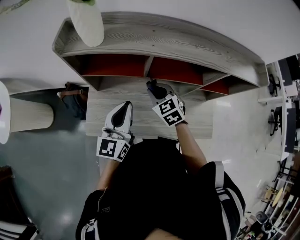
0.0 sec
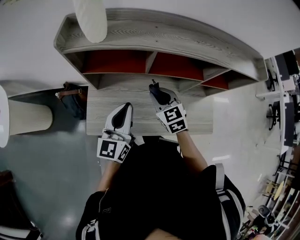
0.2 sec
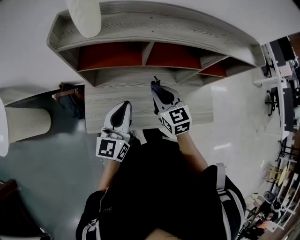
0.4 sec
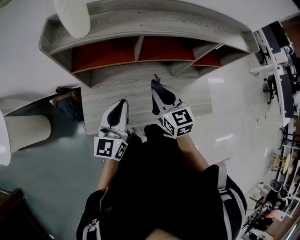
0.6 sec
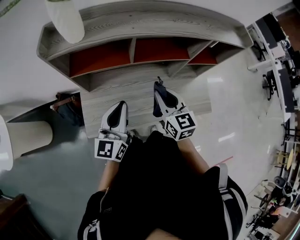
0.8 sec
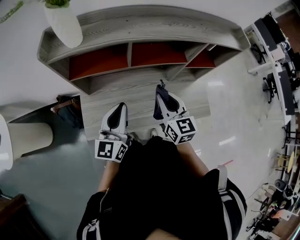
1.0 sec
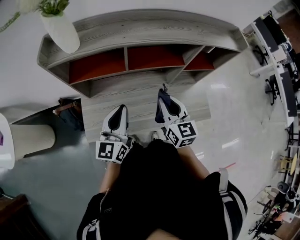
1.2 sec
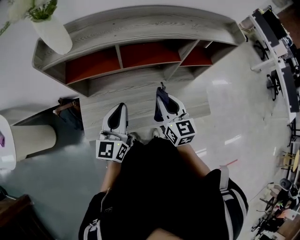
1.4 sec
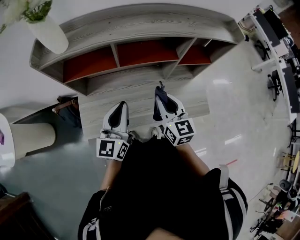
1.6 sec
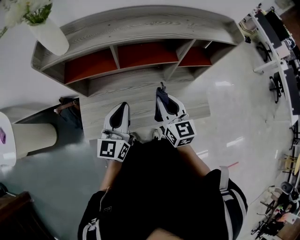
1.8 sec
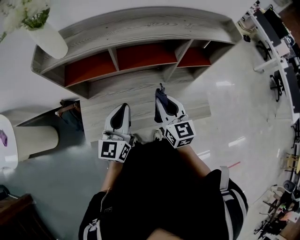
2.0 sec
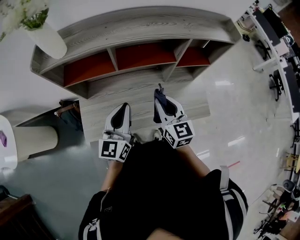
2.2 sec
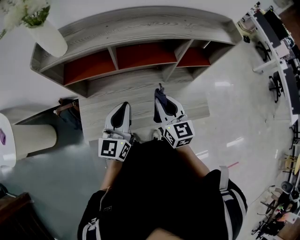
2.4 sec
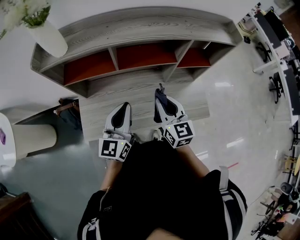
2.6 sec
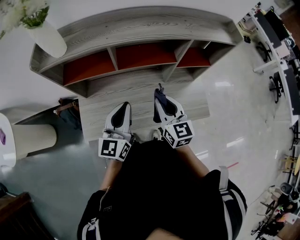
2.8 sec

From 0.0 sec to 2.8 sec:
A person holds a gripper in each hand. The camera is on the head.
From 0.0 sec to 1.4 sec: The right gripper is displaced backward, to the right and upward by roughly 20 cm, and turns by some 40 degrees, while the left gripper shifts about 5 cm backward.
From 1.4 sec to 2.8 sec: The grippers move only a little.

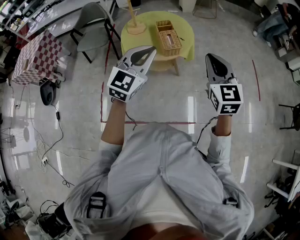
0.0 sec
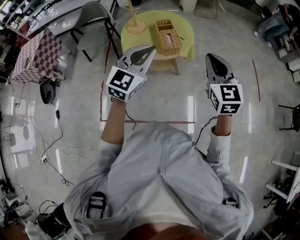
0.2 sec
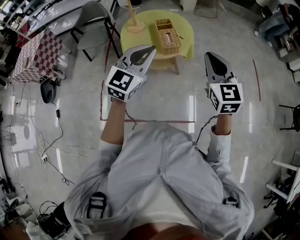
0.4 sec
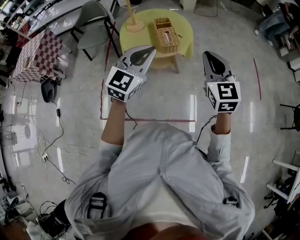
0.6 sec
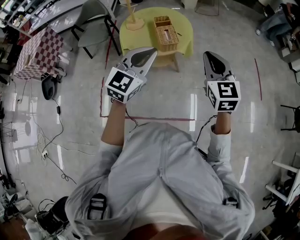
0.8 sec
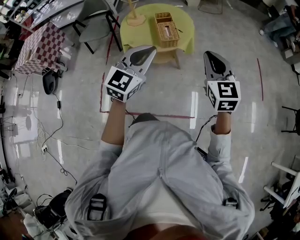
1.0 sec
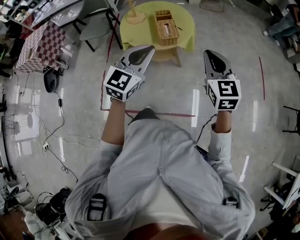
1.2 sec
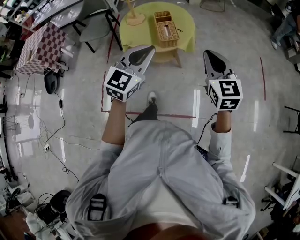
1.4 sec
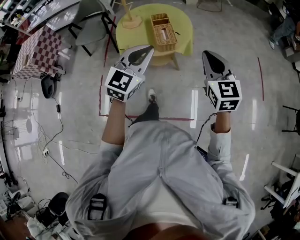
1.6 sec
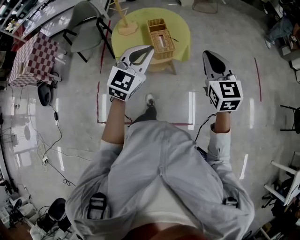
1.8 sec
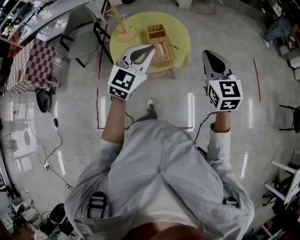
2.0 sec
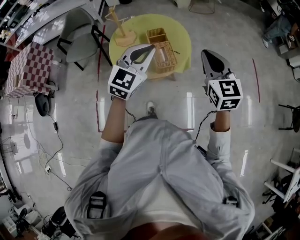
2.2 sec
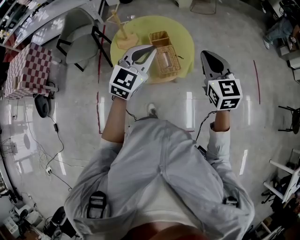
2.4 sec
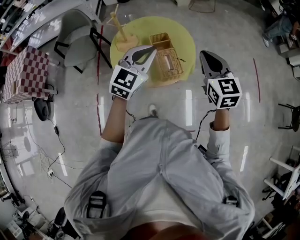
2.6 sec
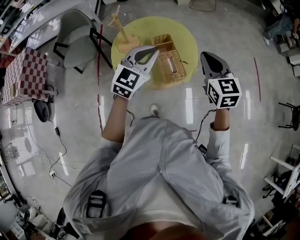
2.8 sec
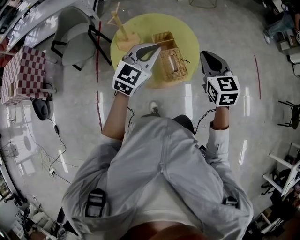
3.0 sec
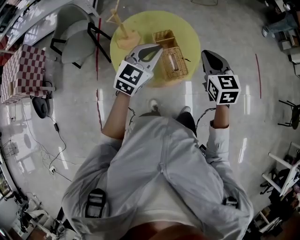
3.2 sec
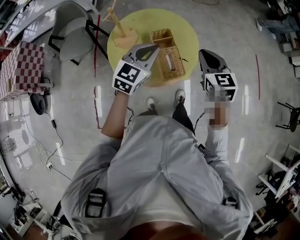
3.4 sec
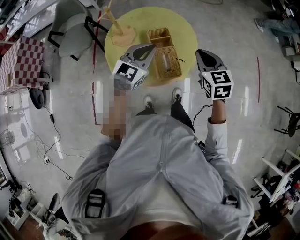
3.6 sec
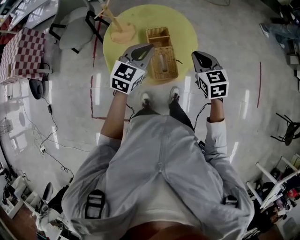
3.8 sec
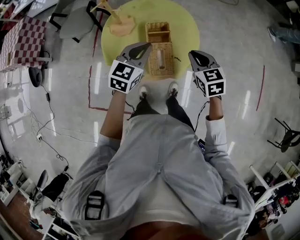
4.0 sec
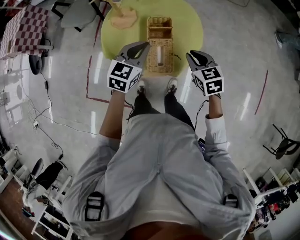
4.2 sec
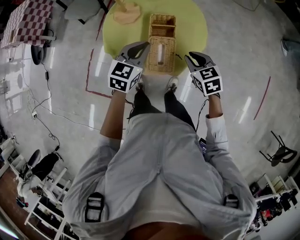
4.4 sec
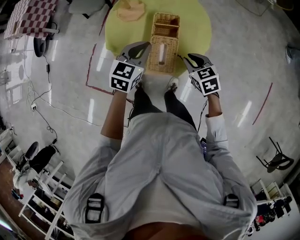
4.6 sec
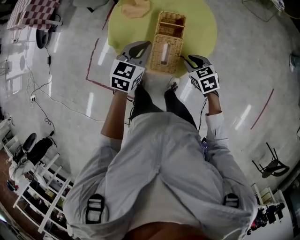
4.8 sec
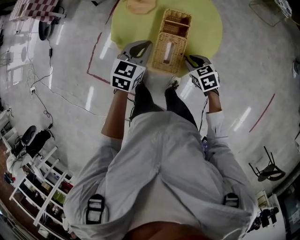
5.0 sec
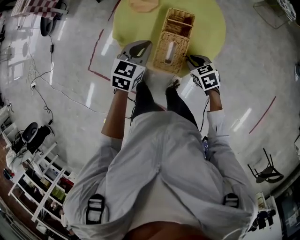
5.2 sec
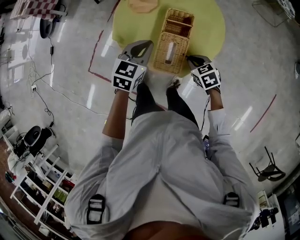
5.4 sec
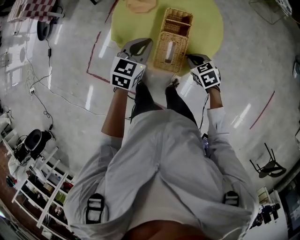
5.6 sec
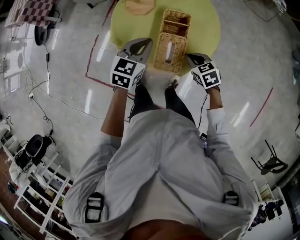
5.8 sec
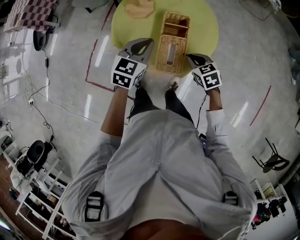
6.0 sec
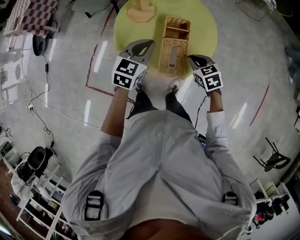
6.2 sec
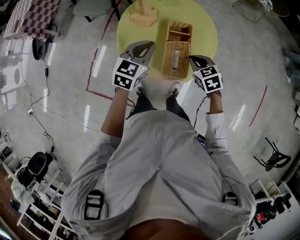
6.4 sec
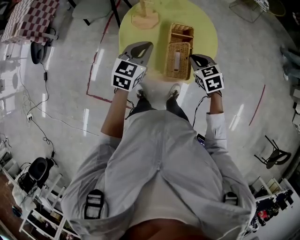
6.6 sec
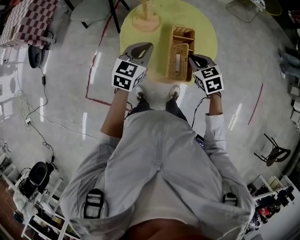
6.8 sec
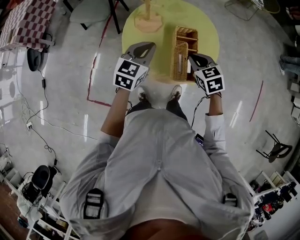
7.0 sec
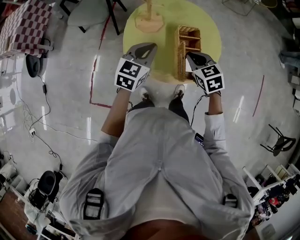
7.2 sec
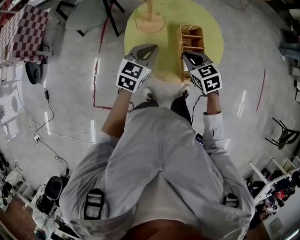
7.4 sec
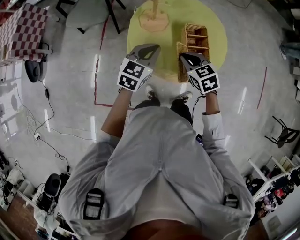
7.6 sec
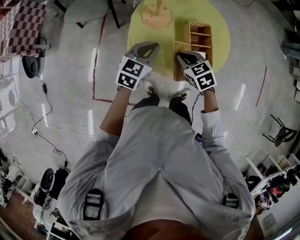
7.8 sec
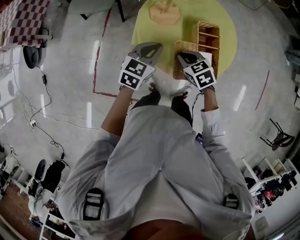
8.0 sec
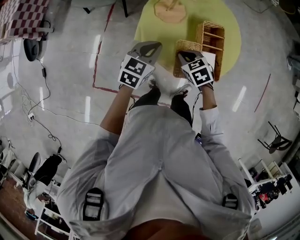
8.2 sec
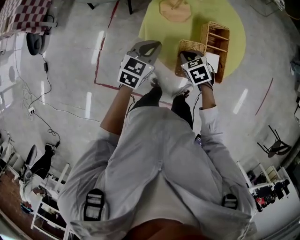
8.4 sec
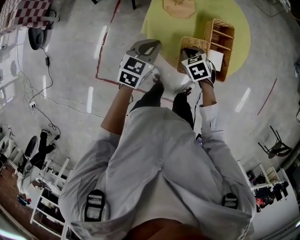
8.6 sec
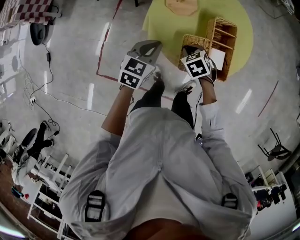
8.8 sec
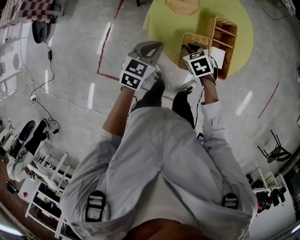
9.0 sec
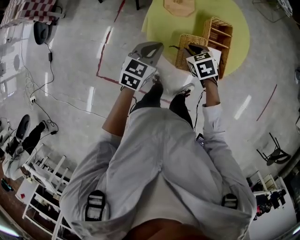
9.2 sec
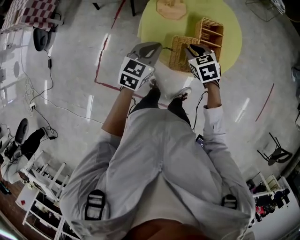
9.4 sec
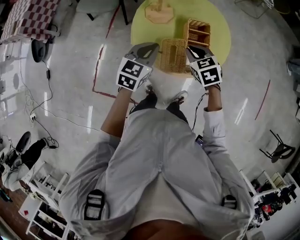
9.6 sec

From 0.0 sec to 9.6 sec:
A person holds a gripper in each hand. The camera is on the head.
From 0.0 sec to 1.6 sec: The right gripper moves forward, roughly 5 cm. Meanwhile the left gripper is displaced to the right by some 5 cm.
From 1.6 sec to 3.2 sec: The right gripper is displaced forward and to the left by approximately 30 cm. The left gripper moves forward, approximately 30 cm.
From 3.2 sec to 4.8 sec: The left gripper is displaced downward by approximately 15 cm, and turns by some 40 degrees. Meanwhile the right gripper moves downward, about 25 cm, swivels approximately 50 degrees, and opens its fingers.
From 4.8 sec to 6.4 sec: The left gripper is displaced to the left by about 5 cm. Meanwhile the right gripper goes about 10 cm upward and to the left.
From 6.4 sec to 8.0 sec: The right gripper goes roughly 20 cm to the left; the left gripper moves to the left and downward, about 15 cm.
From 8.0 sec to 9.6 sec: The left gripper shifts some 5 cm backward, while the right gripper is displaced to the right and upward by approximately 10 cm.

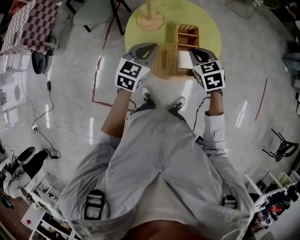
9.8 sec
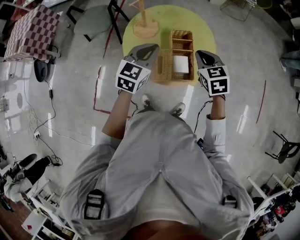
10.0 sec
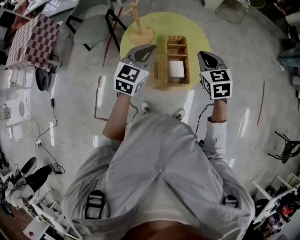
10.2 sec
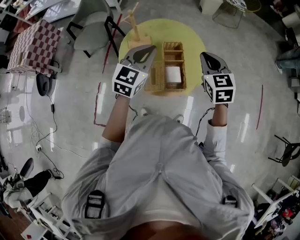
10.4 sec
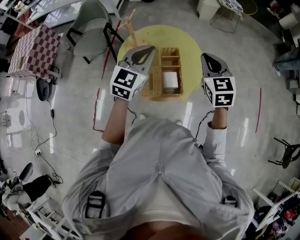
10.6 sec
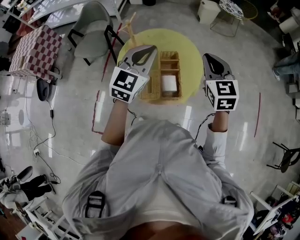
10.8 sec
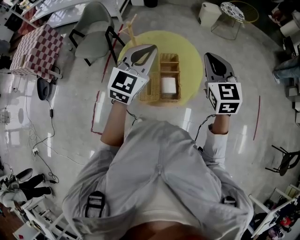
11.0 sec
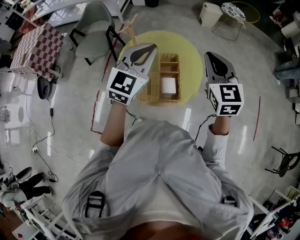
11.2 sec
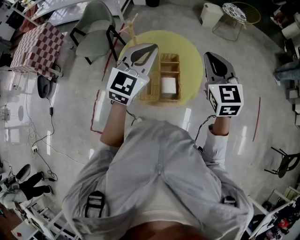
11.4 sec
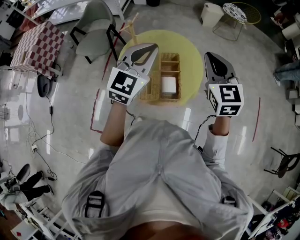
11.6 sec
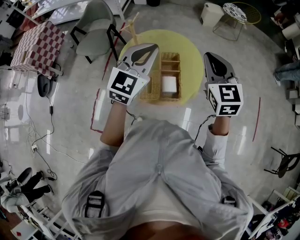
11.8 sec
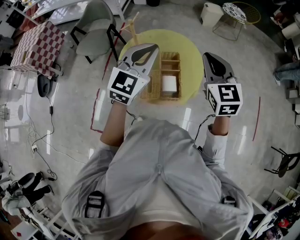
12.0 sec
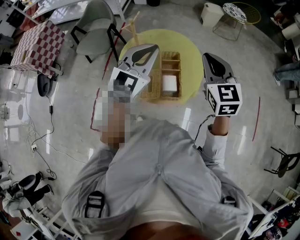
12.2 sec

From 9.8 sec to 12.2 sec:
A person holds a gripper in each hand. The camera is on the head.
From 9.8 sec to 11.0 sec: The two grippers go some 25 cm upward and to the right. The right gripper turns by about 30 degrees; the left gripper changes its angle by about 20 degrees.
From 11.0 sec to 12.2 sec: There are only small adjustments of the grippers.

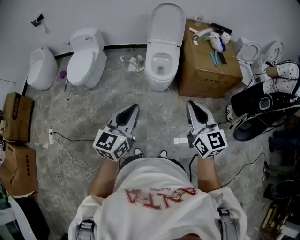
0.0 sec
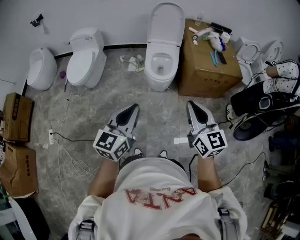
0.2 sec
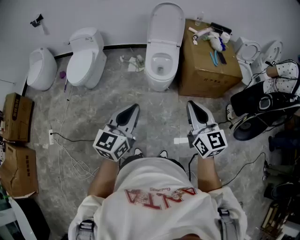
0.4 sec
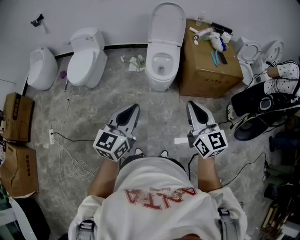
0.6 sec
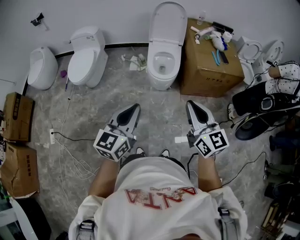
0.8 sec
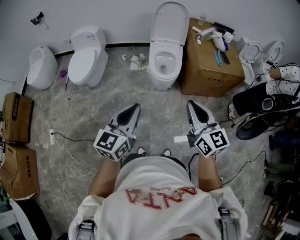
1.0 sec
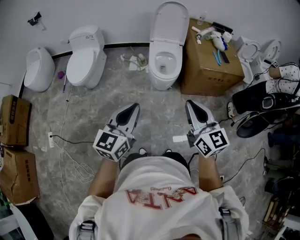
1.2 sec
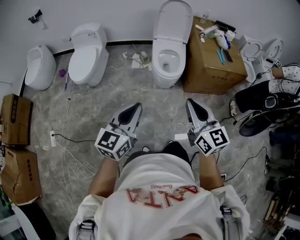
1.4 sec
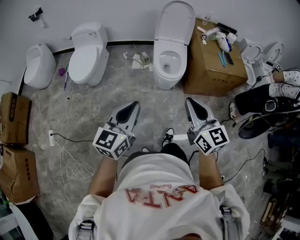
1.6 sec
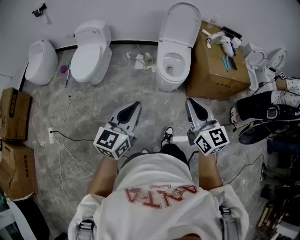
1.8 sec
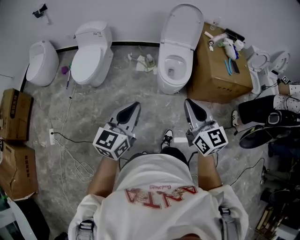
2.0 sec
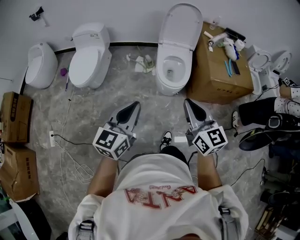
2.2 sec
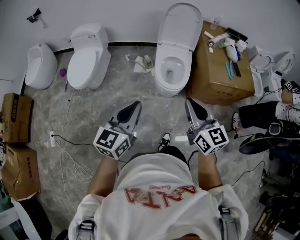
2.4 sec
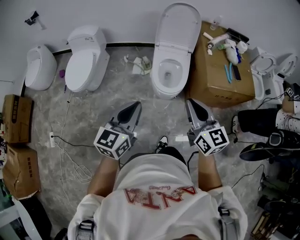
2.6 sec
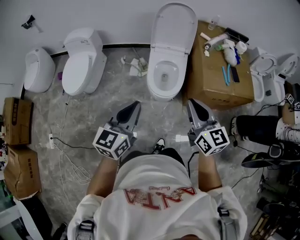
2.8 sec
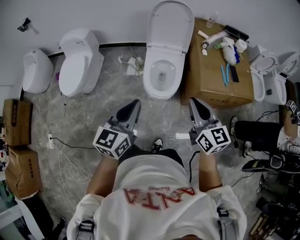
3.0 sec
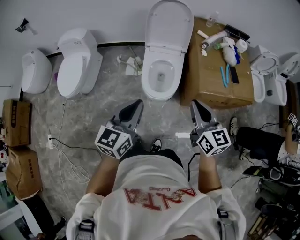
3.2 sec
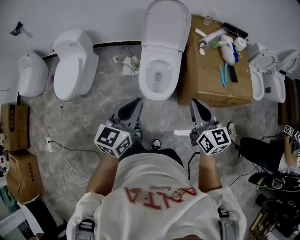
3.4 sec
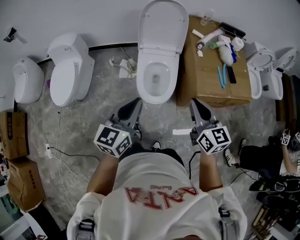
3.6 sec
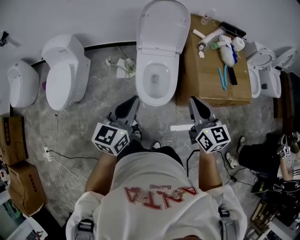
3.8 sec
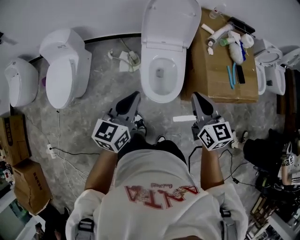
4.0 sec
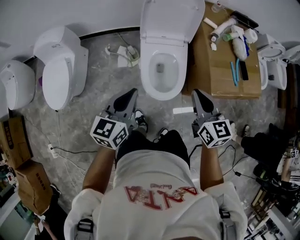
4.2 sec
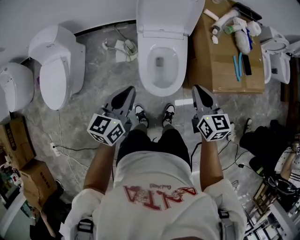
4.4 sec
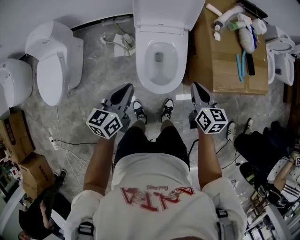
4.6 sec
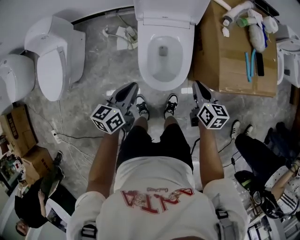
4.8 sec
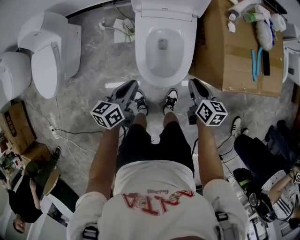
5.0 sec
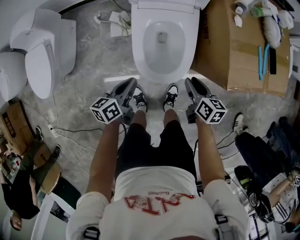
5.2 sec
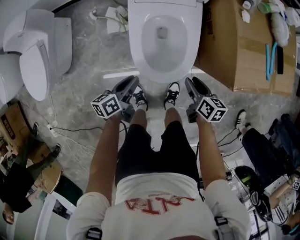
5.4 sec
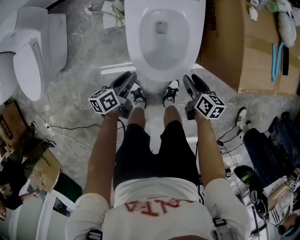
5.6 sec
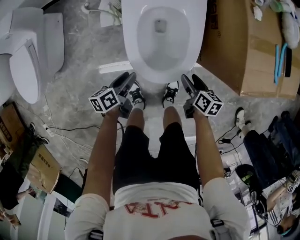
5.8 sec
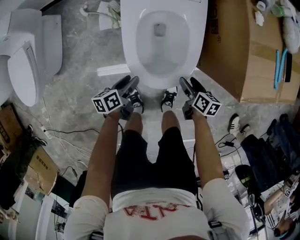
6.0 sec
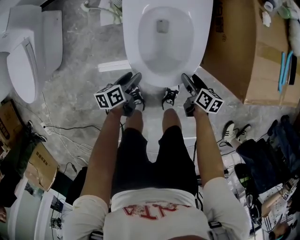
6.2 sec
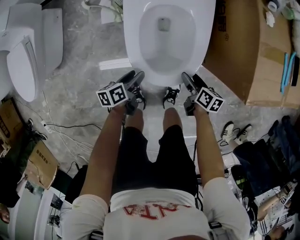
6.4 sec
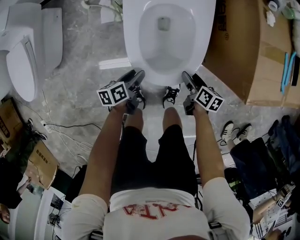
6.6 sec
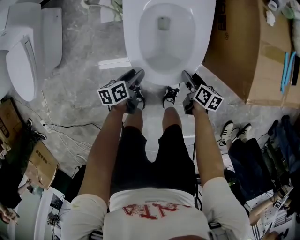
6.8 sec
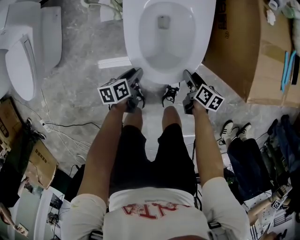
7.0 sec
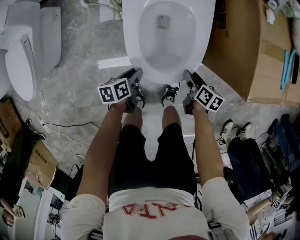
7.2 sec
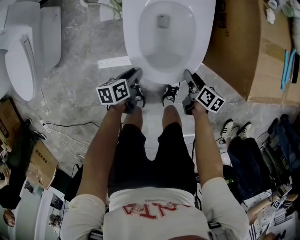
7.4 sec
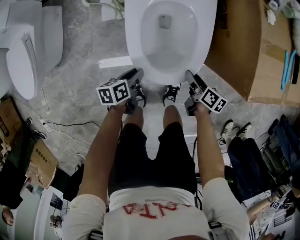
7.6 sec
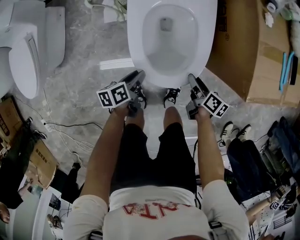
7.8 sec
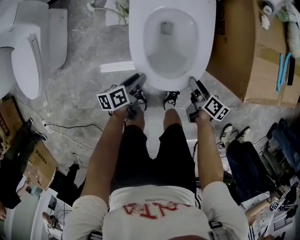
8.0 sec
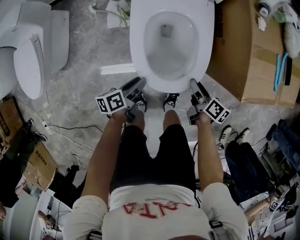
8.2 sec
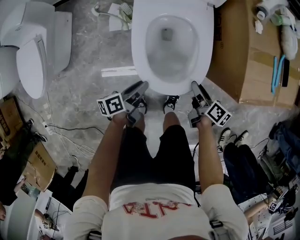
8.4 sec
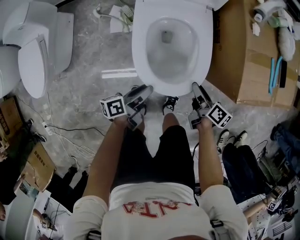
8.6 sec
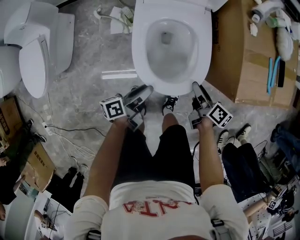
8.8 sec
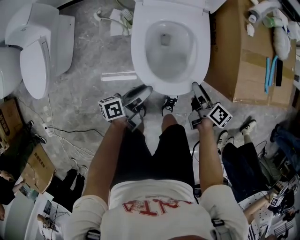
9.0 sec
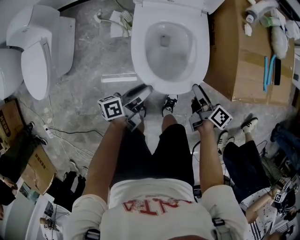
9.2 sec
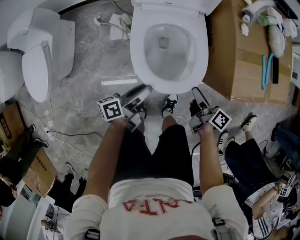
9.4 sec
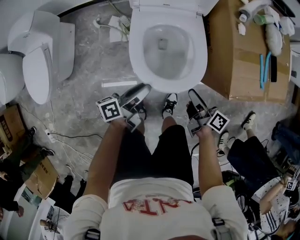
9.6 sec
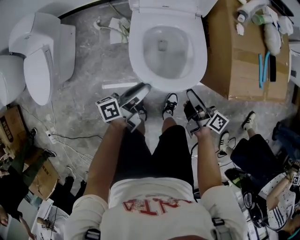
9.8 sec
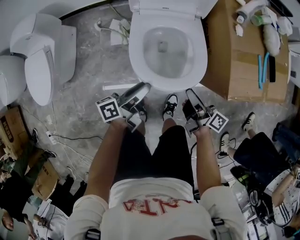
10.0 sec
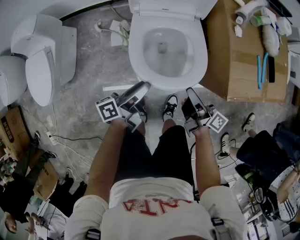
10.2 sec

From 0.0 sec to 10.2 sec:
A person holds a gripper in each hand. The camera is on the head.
From 0.0 sec to 1.4 sec: Both grippers travel together to the left, roughly 10 cm.
From 1.4 sec to 3.0 sec: The two grippers go about 35 cm forward and to the right.
From 3.0 sec to 4.4 sec: Both grippers travel together forward and downward, approximately 25 cm. The right gripper changes its angle by some 20 degrees.
From 4.4 sec to 5.8 sec: The two grippers go approximately 40 cm downward. The left gripper swivels about 40 degrees, and opens up. The right gripper rotates some 40 degrees, and opens.
From 5.8 sec to 7.2 sec: The two grippers go about 5 cm downward.
From 7.2 sec to 8.8 sec: Both grippers travel together upward, some 15 cm. The left gripper tips its fingers upward by roughly 30 degrees.
From 8.8 sec to 10.2 sec: The two grippers go approximately 10 cm upward. The right gripper swivels about 30 degrees, and closes up.
